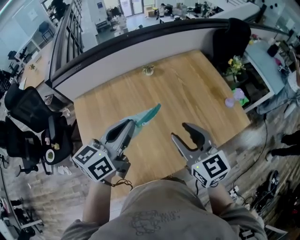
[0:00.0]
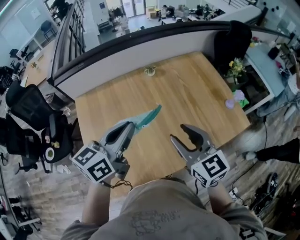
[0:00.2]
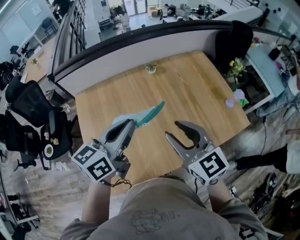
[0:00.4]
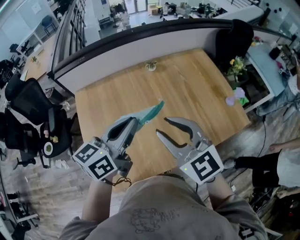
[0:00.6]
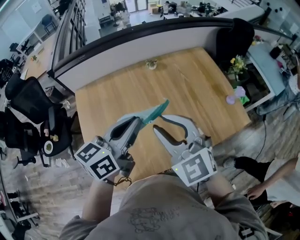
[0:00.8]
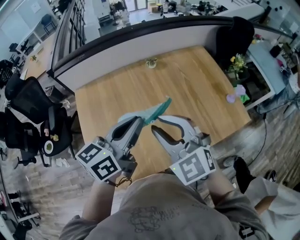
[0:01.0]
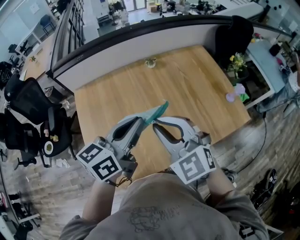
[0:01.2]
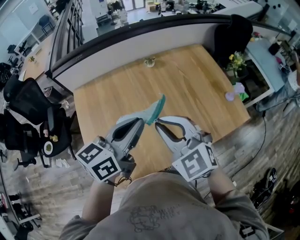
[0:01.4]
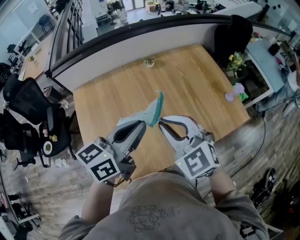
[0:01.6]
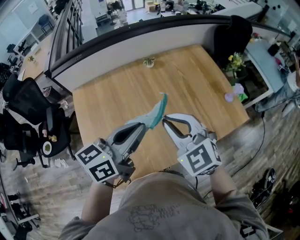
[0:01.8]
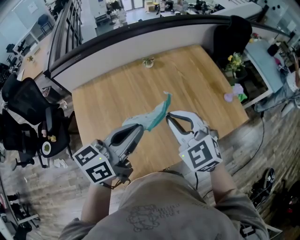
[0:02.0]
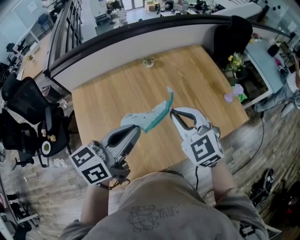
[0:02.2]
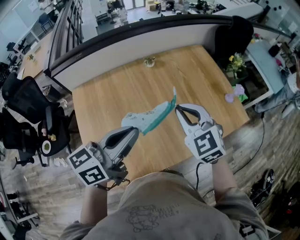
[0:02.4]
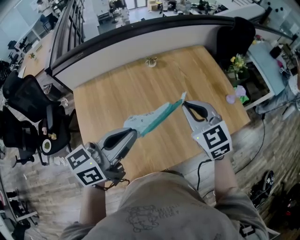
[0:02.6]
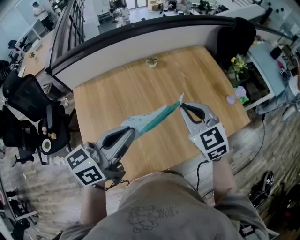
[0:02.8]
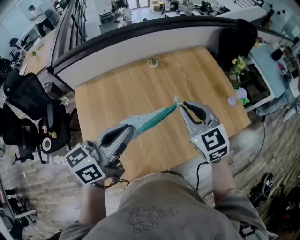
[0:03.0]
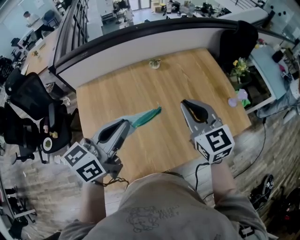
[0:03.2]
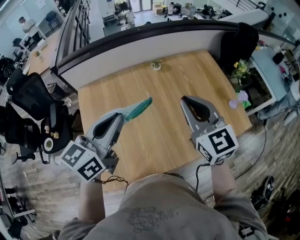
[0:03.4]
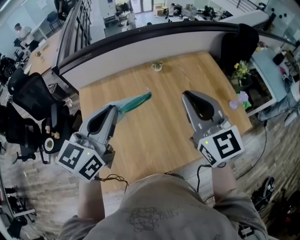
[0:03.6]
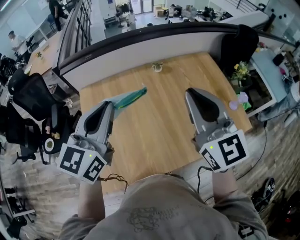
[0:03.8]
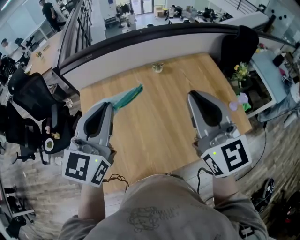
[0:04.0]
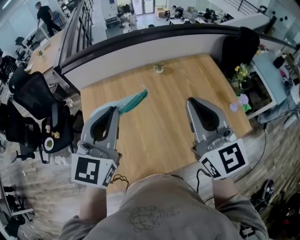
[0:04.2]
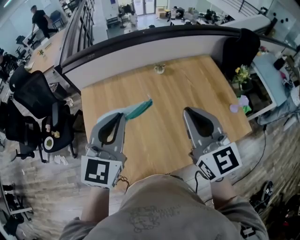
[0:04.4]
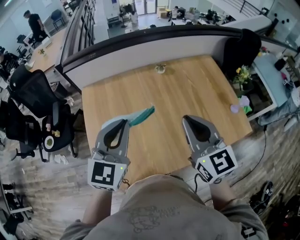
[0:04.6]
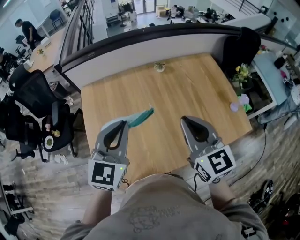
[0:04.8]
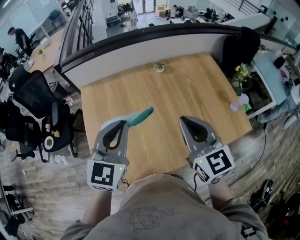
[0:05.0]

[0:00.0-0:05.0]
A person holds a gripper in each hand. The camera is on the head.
0:00.0 to 0:01.6: The right gripper goes roughly 5 cm to the left, changes its angle by approximately 30 degrees, and closes. Meanwhile the left gripper changes place by some 5 cm.
0:01.6 to 0:03.4: The left gripper moves to the left, some 10 cm, while the right gripper travels forward by approximately 5 cm, and swivels some 20 degrees.
0:03.4 to 0:05.0: The left gripper travels upward and back again, about 5 cm each way, and changes its angle by roughly 30 degrees; the right gripper shifts roughly 5 cm backward, and reaches about 10 cm upward, then returns.

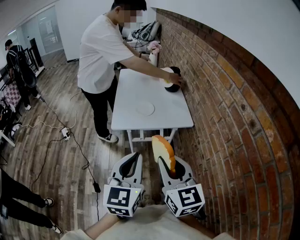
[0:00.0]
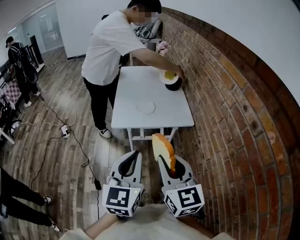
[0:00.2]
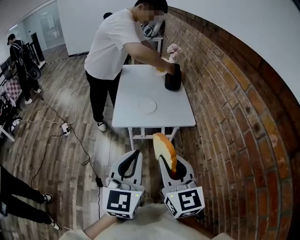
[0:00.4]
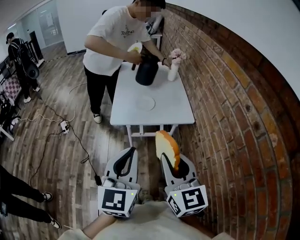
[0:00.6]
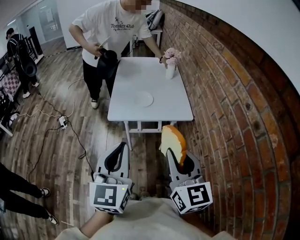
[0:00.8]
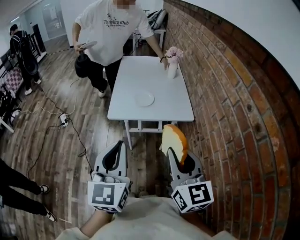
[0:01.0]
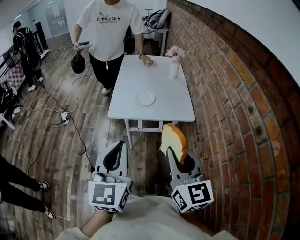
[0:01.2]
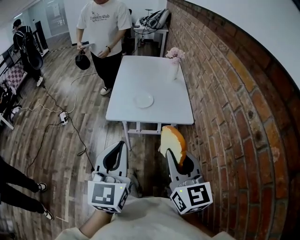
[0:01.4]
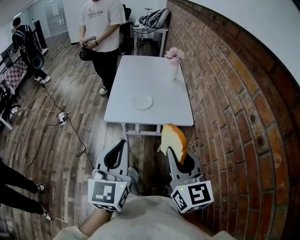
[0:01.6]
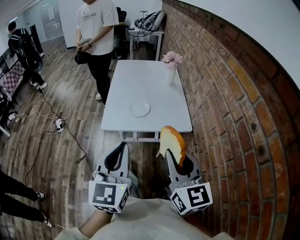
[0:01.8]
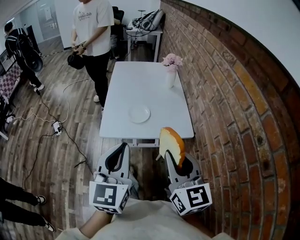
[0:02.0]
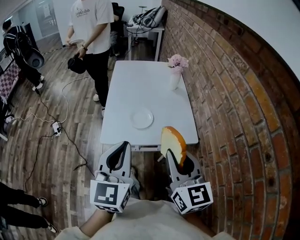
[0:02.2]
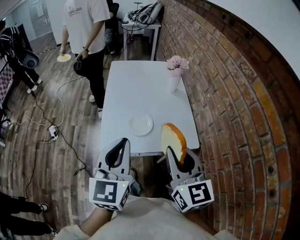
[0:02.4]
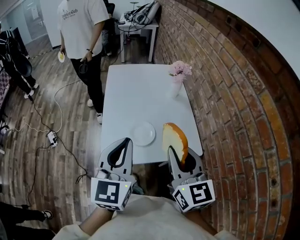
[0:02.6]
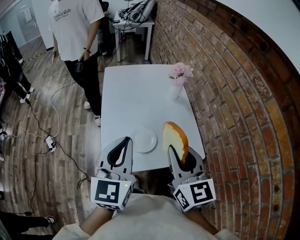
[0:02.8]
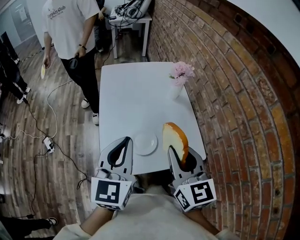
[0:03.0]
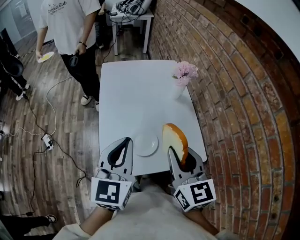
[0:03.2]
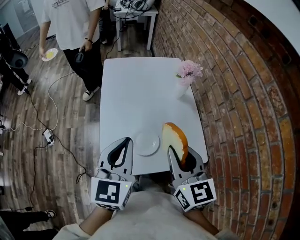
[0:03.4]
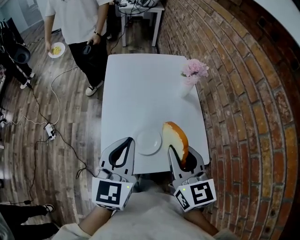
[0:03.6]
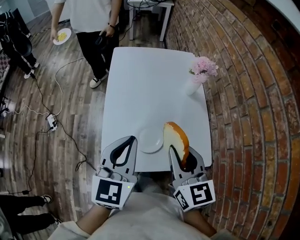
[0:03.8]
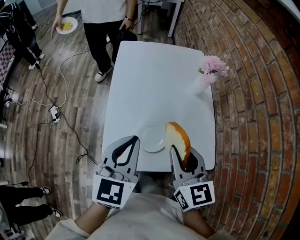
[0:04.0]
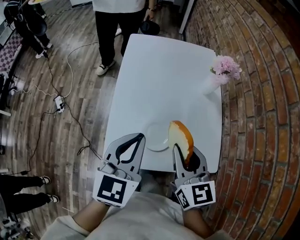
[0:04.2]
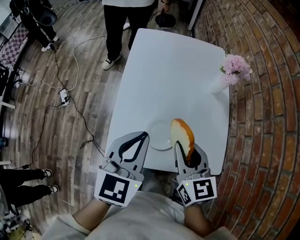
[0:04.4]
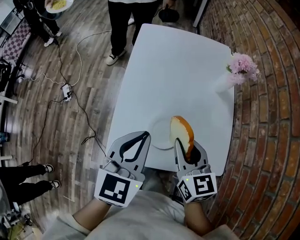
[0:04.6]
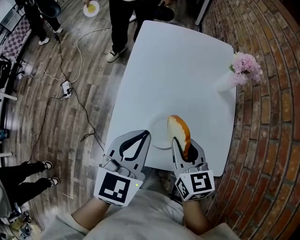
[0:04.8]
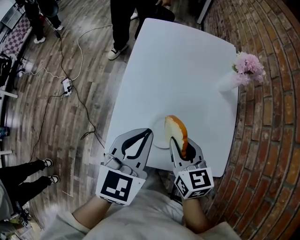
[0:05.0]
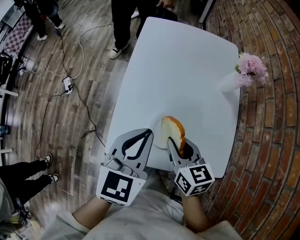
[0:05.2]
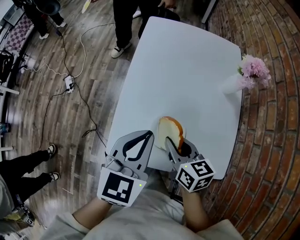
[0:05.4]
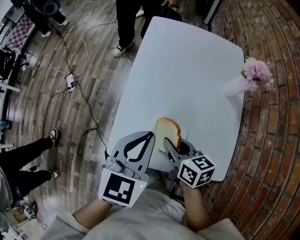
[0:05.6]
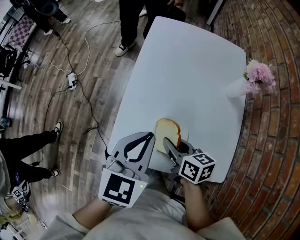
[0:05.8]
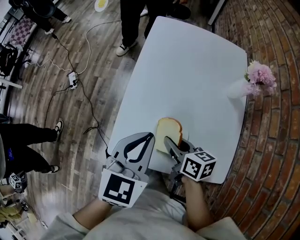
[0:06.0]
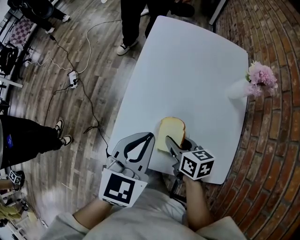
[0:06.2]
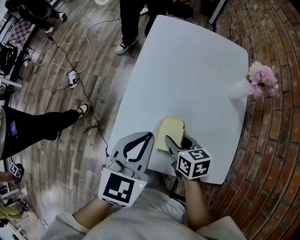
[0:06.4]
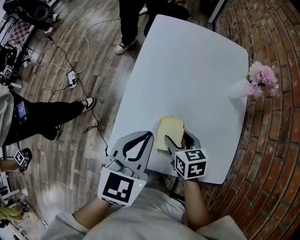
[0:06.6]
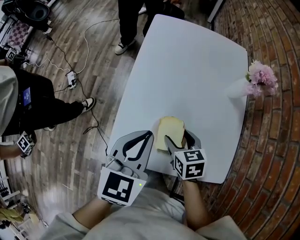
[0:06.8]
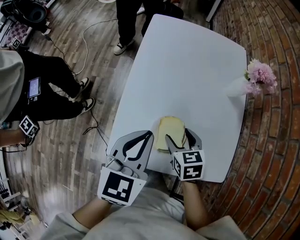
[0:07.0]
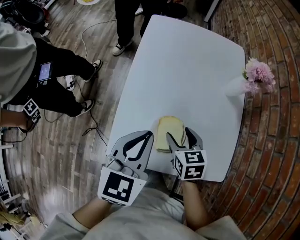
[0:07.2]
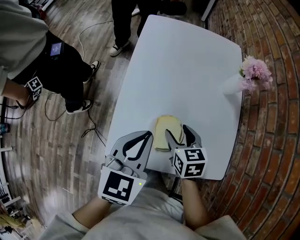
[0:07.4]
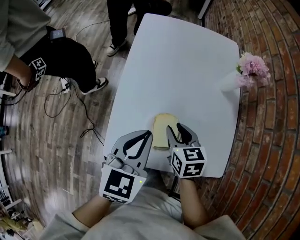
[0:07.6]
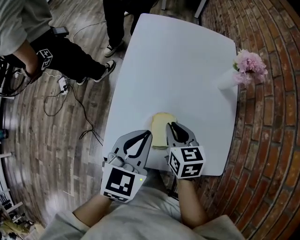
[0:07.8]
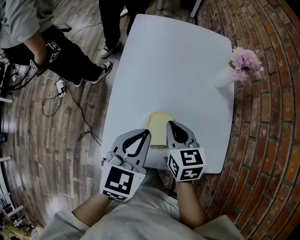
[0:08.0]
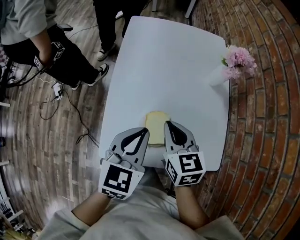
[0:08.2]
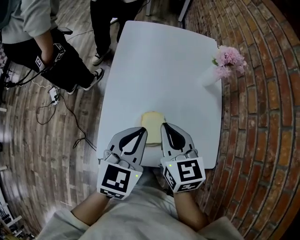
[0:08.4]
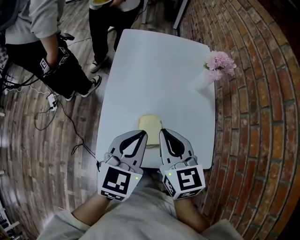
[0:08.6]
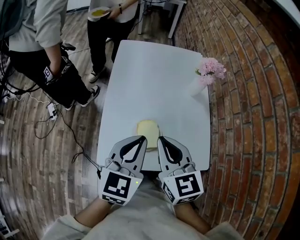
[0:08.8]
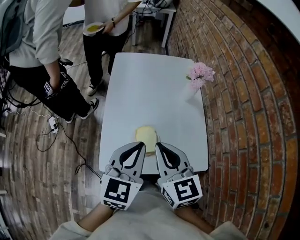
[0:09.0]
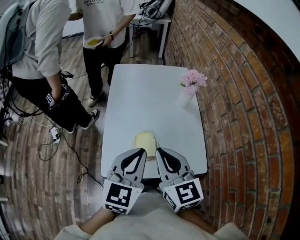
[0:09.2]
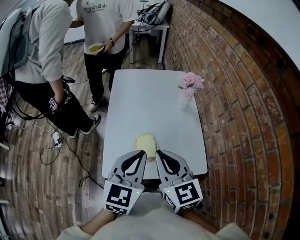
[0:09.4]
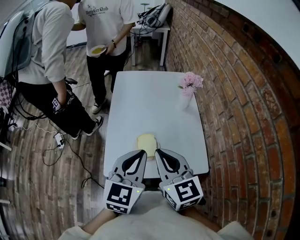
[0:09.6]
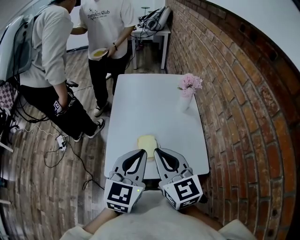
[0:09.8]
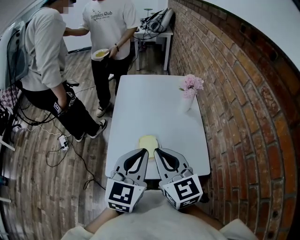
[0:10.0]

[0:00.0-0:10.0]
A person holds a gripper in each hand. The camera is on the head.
0:00.0 to 0:01.4: The right gripper heads to the right, covering approximately 5 cm.
0:01.4 to 0:02.8: Both grippers move forward, about 35 cm.
0:02.8 to 0:04.2: The two grippers go approximately 10 cm downward and forward.
0:04.2 to 0:05.8: The right gripper is displaced downward by roughly 15 cm, and changes its angle by approximately 40 degrees. The left gripper shifts roughly 5 cm downward.
0:05.8 to 0:07.2: The right gripper moves roughly 5 cm, changes its angle by about 30 degrees, and opens.
0:07.2 to 0:08.6: The left gripper moves about 5 cm; the right gripper shifts some 15 cm upward, turns by some 20 degrees, and closes up.
0:08.6 to 0:10.0: The left gripper travels upward and backward by roughly 10 cm. The right gripper is displaced backward and upward by some 15 cm.

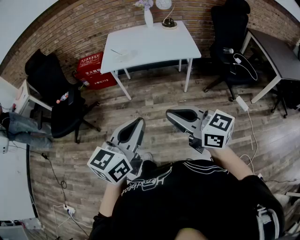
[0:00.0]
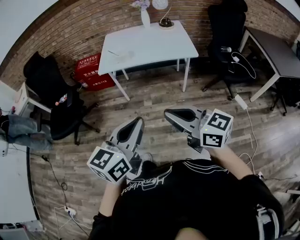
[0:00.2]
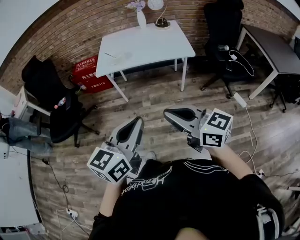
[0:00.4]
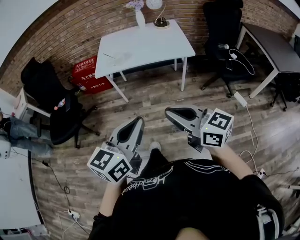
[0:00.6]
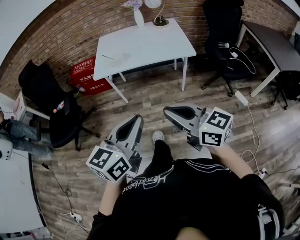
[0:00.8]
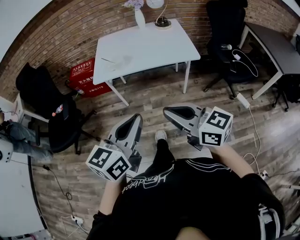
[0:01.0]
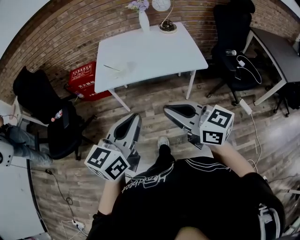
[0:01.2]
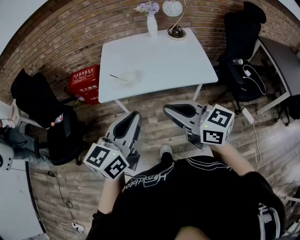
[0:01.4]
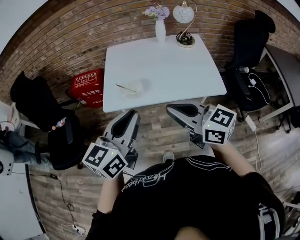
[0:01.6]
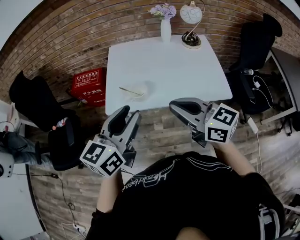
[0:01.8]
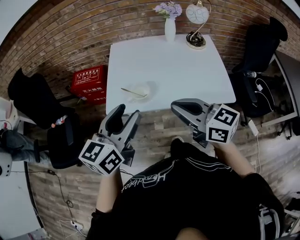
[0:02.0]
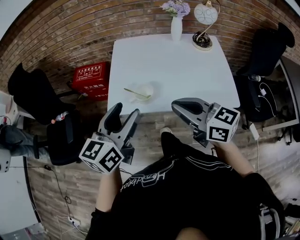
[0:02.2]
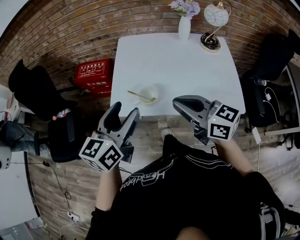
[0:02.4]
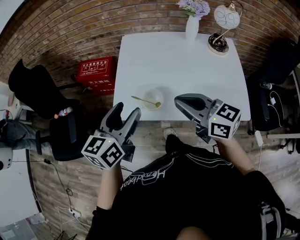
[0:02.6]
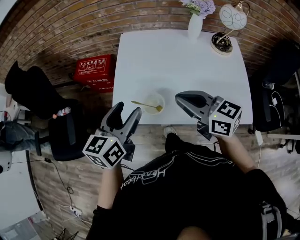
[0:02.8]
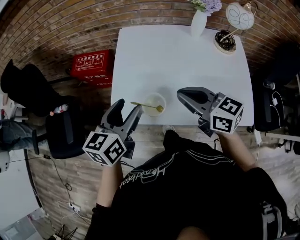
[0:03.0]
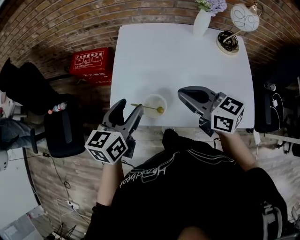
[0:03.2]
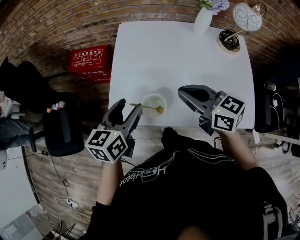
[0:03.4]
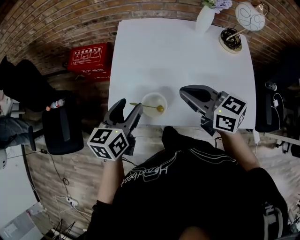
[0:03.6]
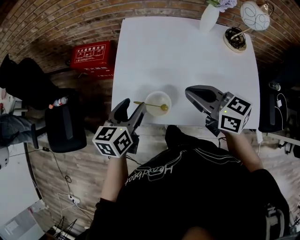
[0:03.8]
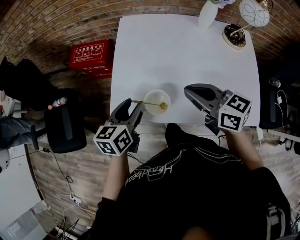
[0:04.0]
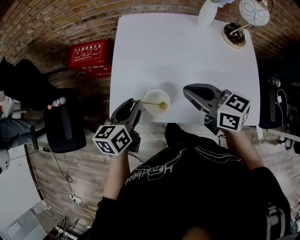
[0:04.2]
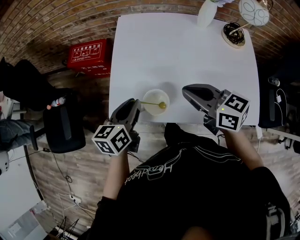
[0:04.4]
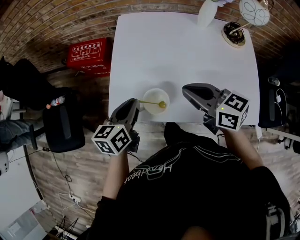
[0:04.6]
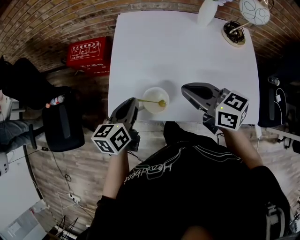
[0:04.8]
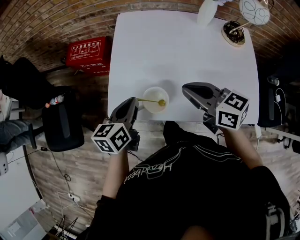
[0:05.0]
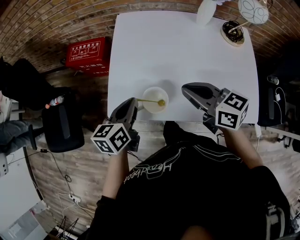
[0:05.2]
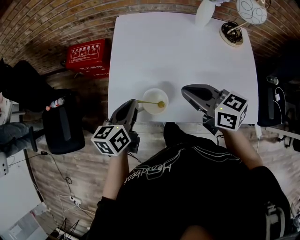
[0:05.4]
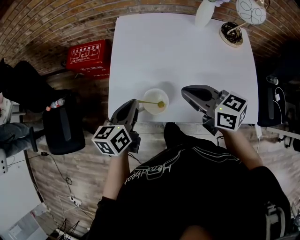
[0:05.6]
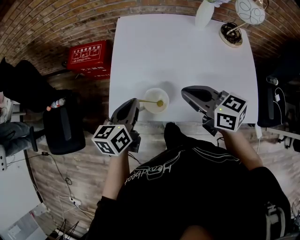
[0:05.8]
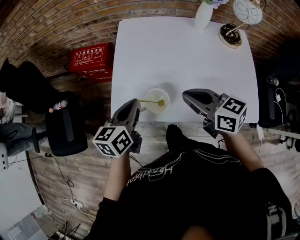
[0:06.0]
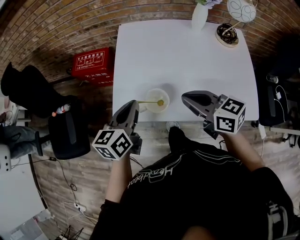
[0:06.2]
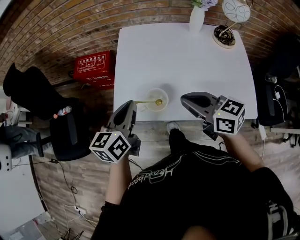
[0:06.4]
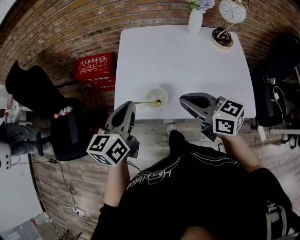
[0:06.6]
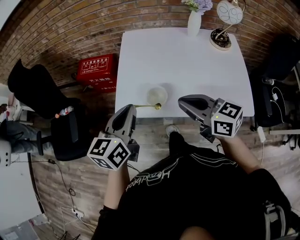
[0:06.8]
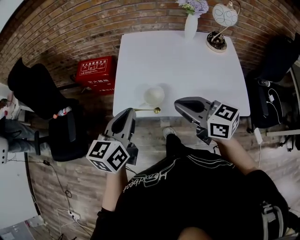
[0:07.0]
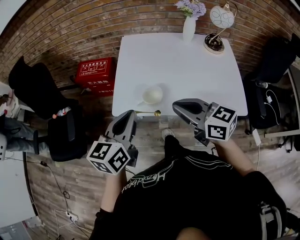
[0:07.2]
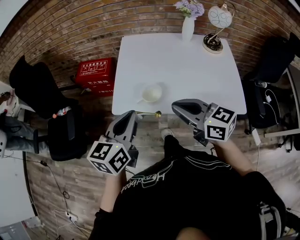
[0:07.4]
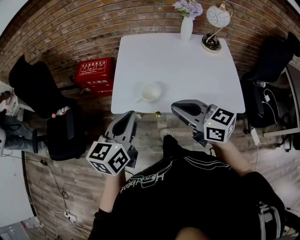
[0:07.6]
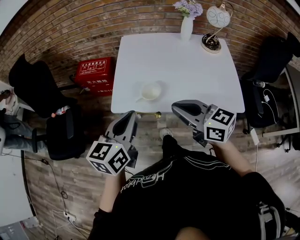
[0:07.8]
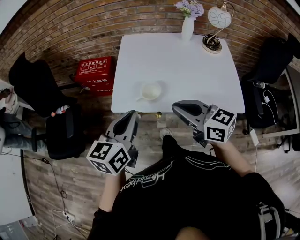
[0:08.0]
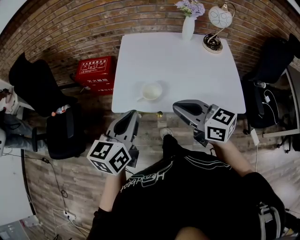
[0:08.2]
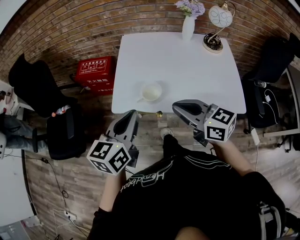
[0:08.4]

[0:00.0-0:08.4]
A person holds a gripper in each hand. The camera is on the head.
0:00.0 to 0:01.4: Both grippers travel together forward, approximately 30 cm.
0:01.4 to 0:02.8: Both grippers move forward, approximately 35 cm. The left gripper swivels about 20 degrees, and opens.
0:02.8 to 0:04.2: The left gripper shifts roughly 10 cm downward, and closes its fingers. Meanwhile the right gripper shifts some 5 cm downward.
0:04.2 to 0:05.6: The left gripper closes up.
0:05.6 to 0:07.0: The right gripper goes roughly 15 cm backward and upward. The left gripper heads upward and backward, covering approximately 15 cm.
0:07.0 to 0:08.4: There are only small adjustments of the grippers.
